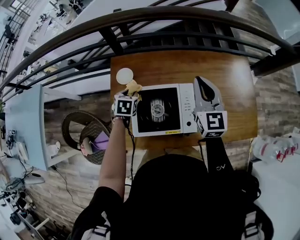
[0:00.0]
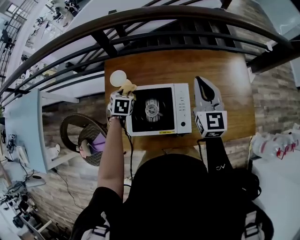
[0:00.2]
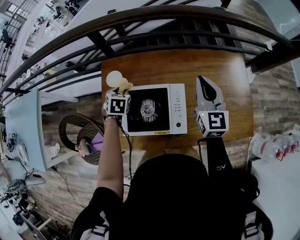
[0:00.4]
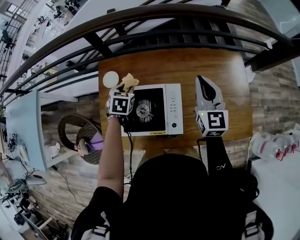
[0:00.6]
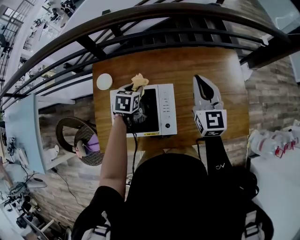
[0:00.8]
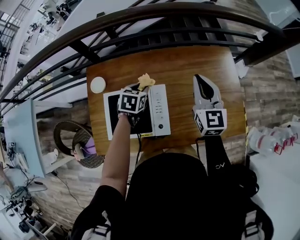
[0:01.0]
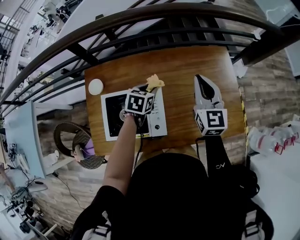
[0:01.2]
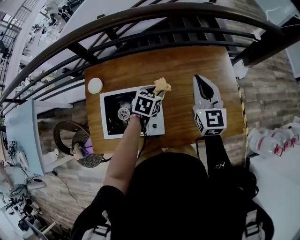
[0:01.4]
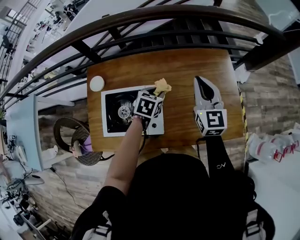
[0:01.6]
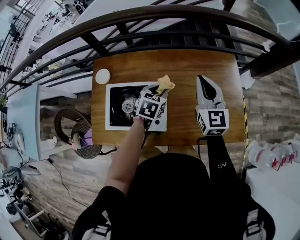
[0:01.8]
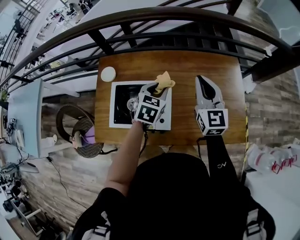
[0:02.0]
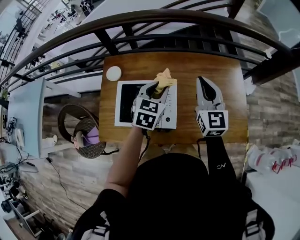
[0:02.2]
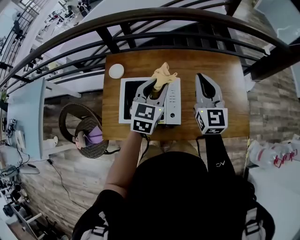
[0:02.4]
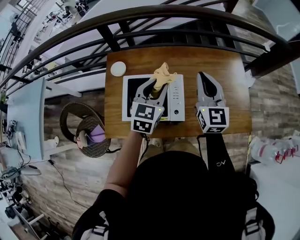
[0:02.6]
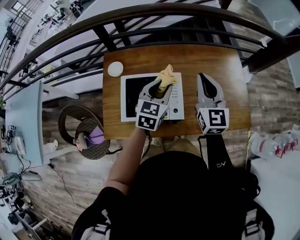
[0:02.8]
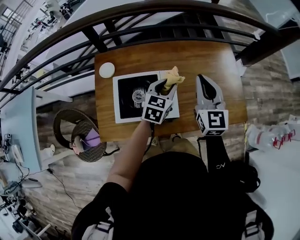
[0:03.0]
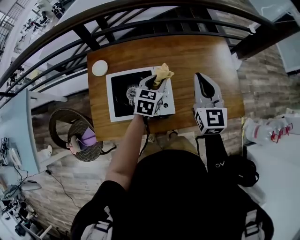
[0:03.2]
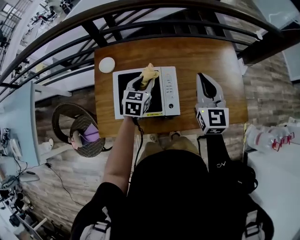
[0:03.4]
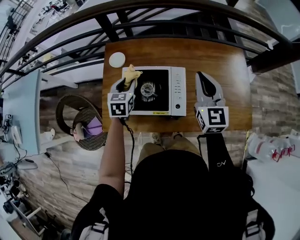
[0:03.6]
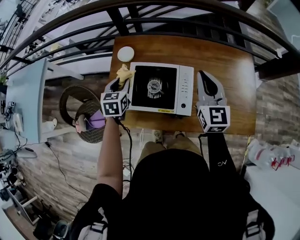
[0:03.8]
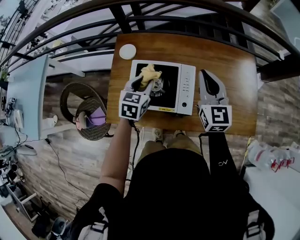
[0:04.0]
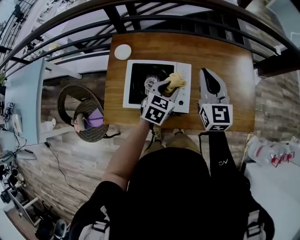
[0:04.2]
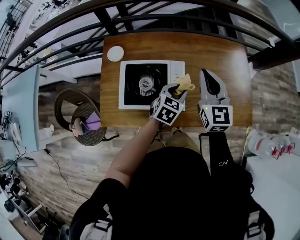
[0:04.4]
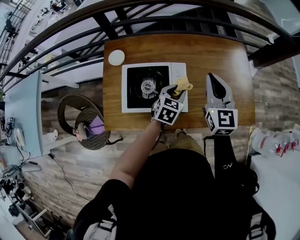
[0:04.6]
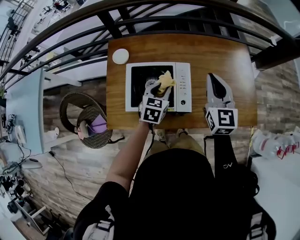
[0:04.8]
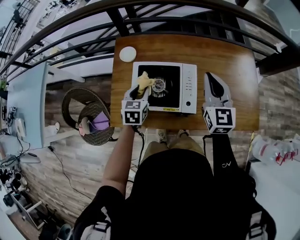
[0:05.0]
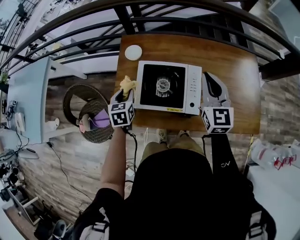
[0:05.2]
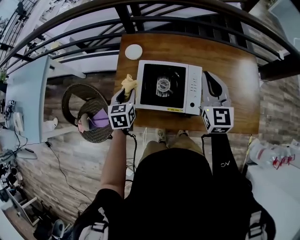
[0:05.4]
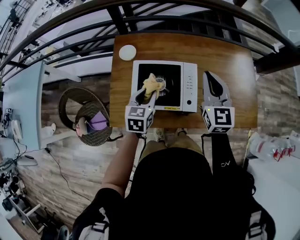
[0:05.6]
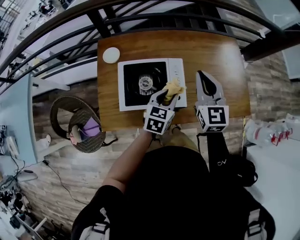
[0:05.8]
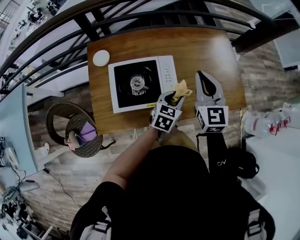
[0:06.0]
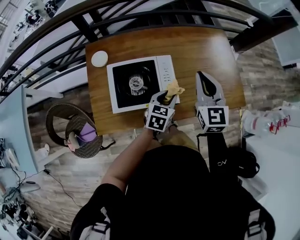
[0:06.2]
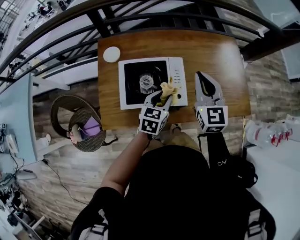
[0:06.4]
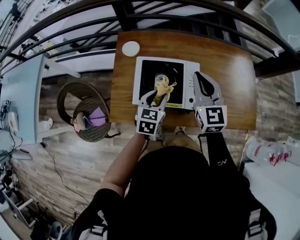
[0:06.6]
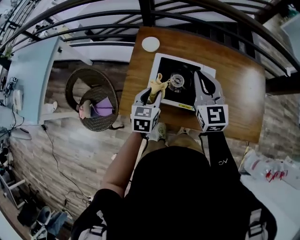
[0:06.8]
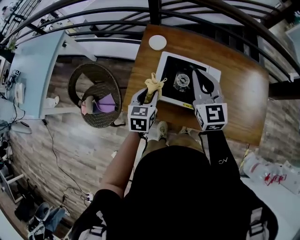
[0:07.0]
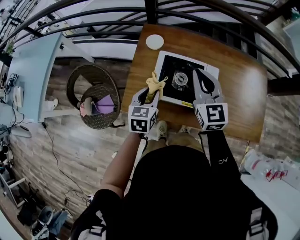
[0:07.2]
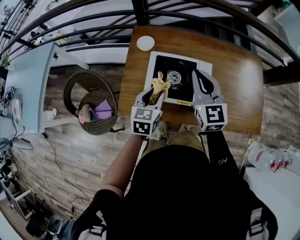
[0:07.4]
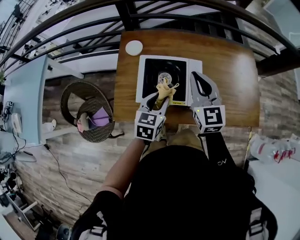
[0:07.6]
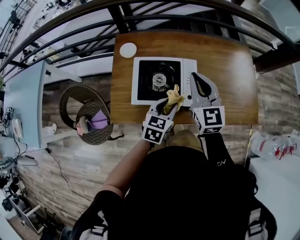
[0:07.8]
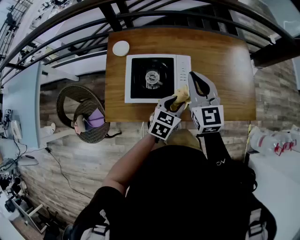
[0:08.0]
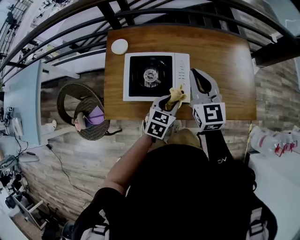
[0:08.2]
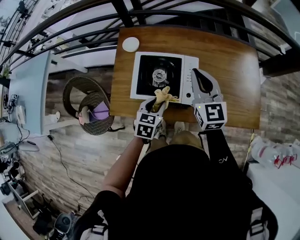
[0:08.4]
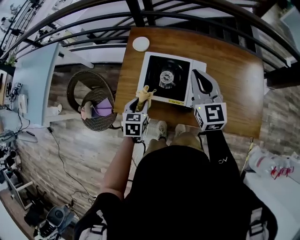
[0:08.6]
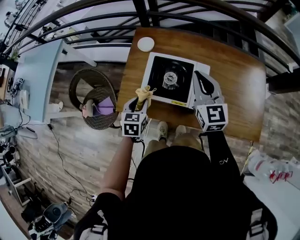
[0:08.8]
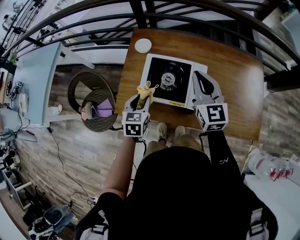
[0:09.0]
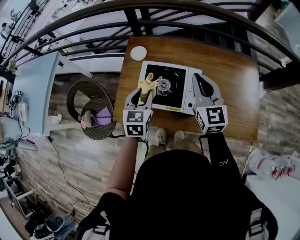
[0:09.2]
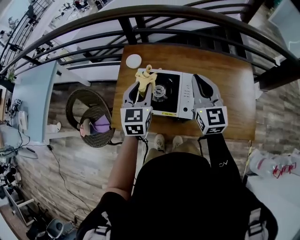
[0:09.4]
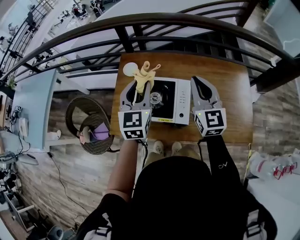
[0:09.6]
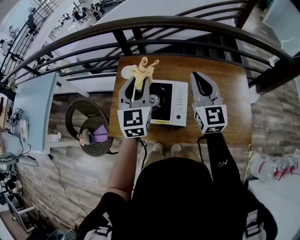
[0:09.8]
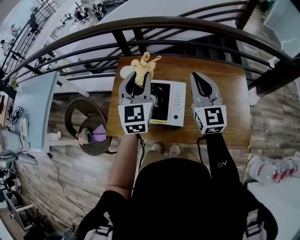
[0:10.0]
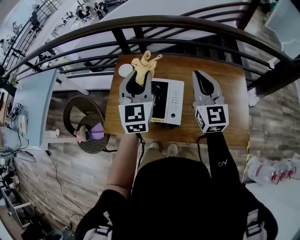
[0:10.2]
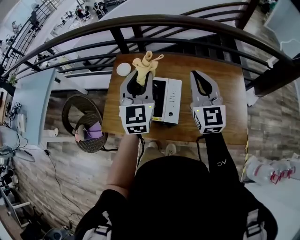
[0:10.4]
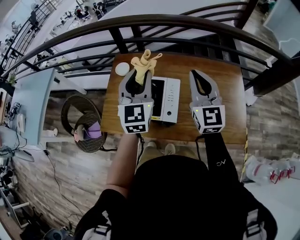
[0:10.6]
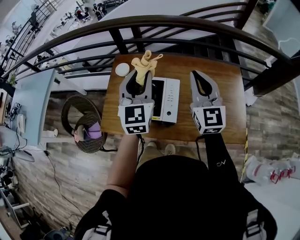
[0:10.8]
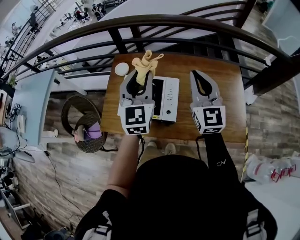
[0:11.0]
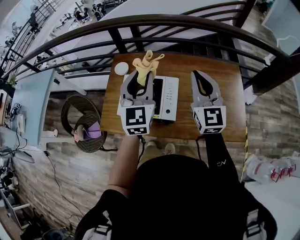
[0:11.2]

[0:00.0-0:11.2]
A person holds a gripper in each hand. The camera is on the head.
0:00.0 to 0:01.6: The left gripper travels to the right by some 35 cm, while the right gripper travels to the right by approximately 20 cm.
0:01.6 to 0:03.2: The left gripper reaches approximately 15 cm upward, then returns. The right gripper goes about 10 cm backward and to the left.
0:03.2 to 0:04.8: The left gripper goes left and right, about 30 cm each way, reversing 2 times.
0:08.0 to 0:09.6: The right gripper travels upward by approximately 5 cm. Meanwhile the left gripper moves upward, some 20 cm, and changes its angle by about 40 degrees.
0:09.6 to 0:11.2: The left gripper is displaced to the right and upward by about 10 cm; the right gripper goes approximately 5 cm to the right.

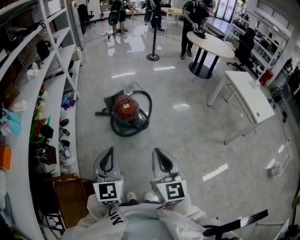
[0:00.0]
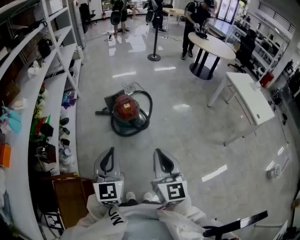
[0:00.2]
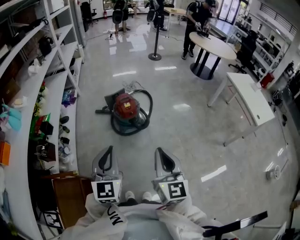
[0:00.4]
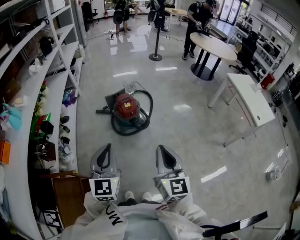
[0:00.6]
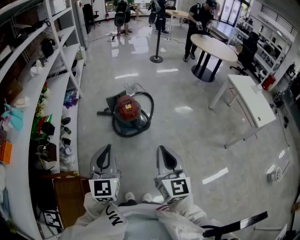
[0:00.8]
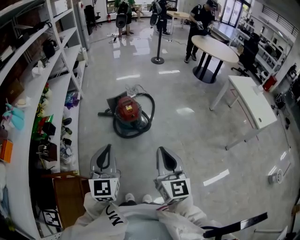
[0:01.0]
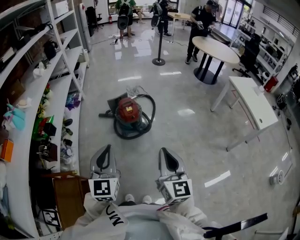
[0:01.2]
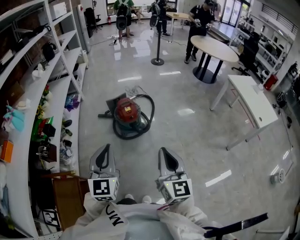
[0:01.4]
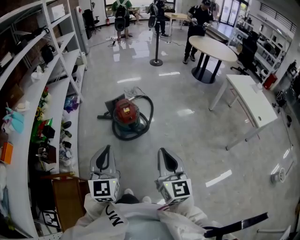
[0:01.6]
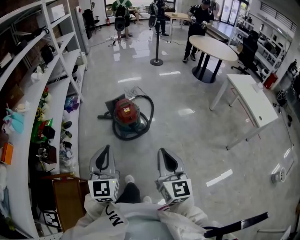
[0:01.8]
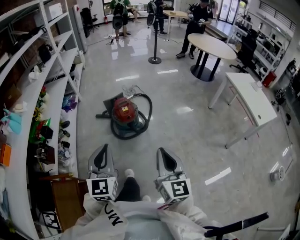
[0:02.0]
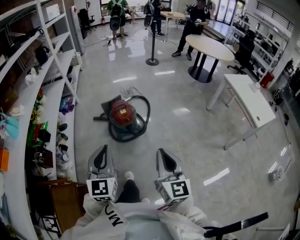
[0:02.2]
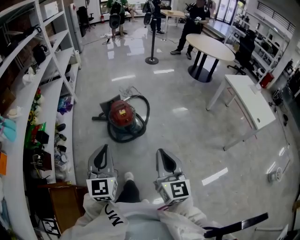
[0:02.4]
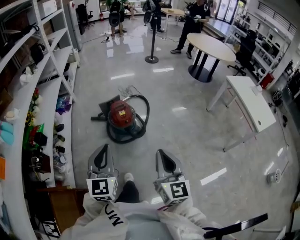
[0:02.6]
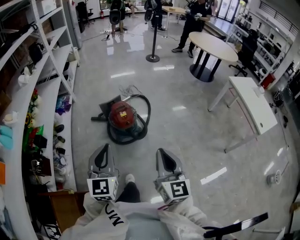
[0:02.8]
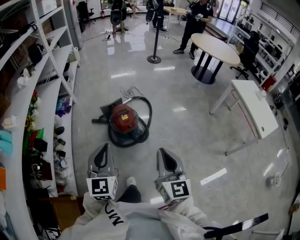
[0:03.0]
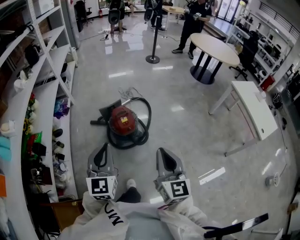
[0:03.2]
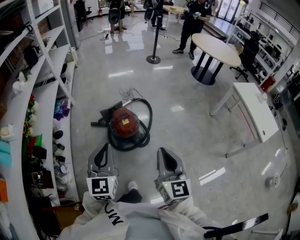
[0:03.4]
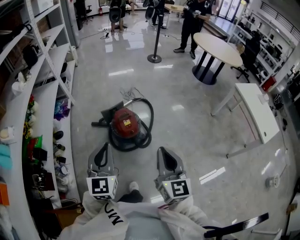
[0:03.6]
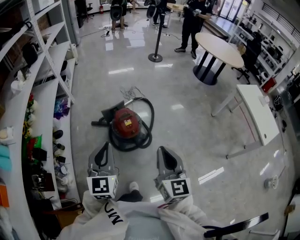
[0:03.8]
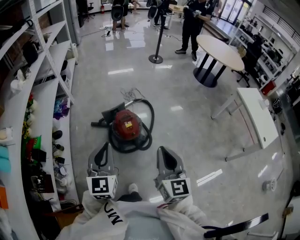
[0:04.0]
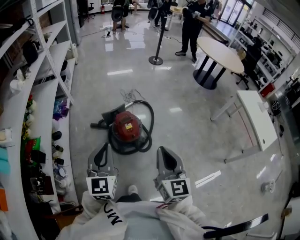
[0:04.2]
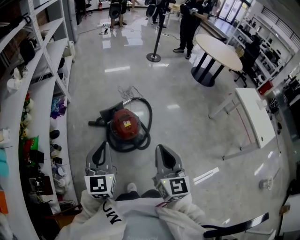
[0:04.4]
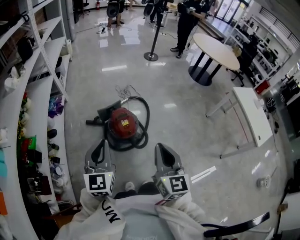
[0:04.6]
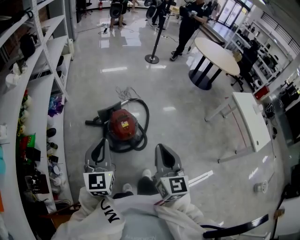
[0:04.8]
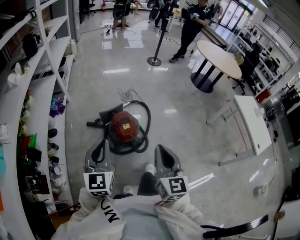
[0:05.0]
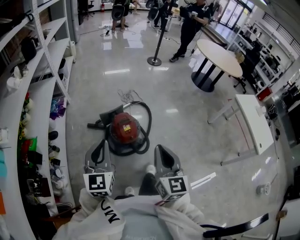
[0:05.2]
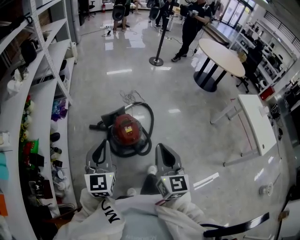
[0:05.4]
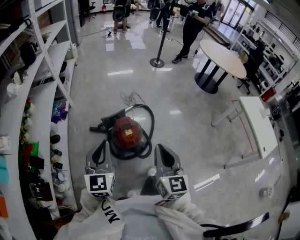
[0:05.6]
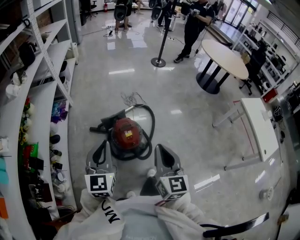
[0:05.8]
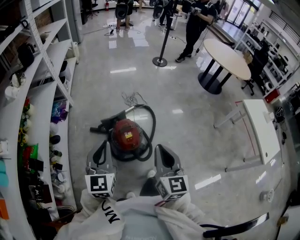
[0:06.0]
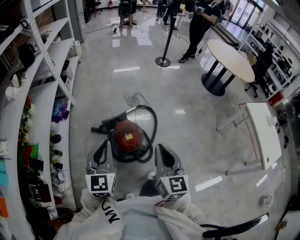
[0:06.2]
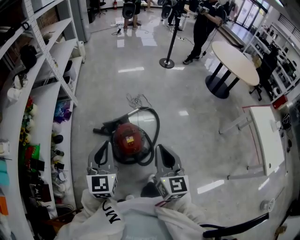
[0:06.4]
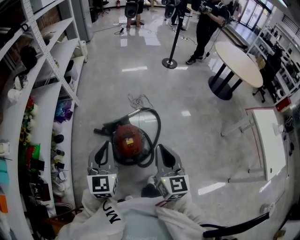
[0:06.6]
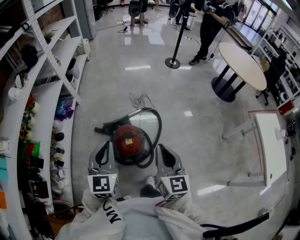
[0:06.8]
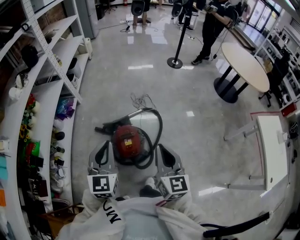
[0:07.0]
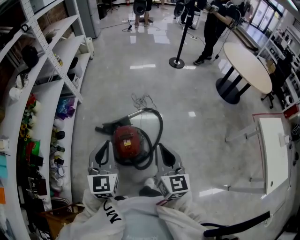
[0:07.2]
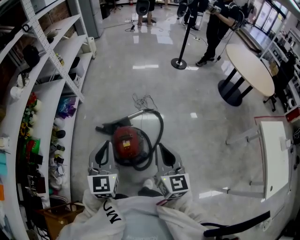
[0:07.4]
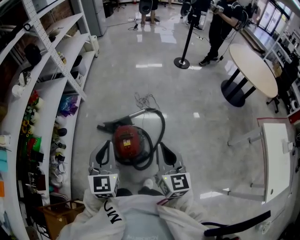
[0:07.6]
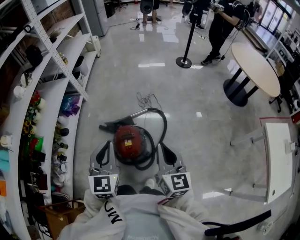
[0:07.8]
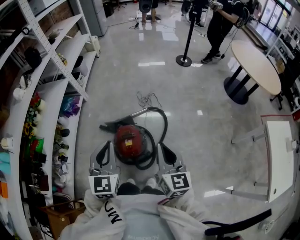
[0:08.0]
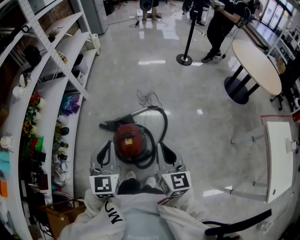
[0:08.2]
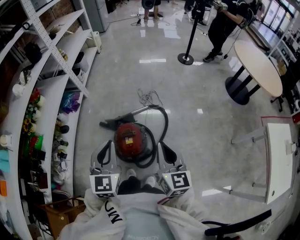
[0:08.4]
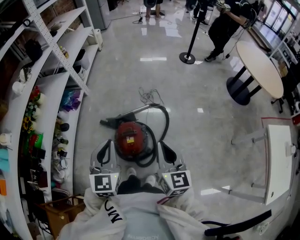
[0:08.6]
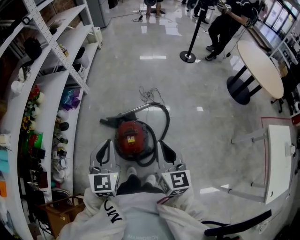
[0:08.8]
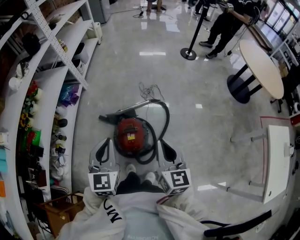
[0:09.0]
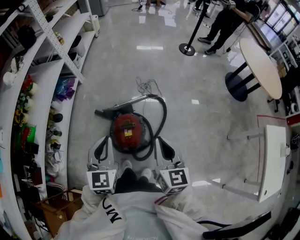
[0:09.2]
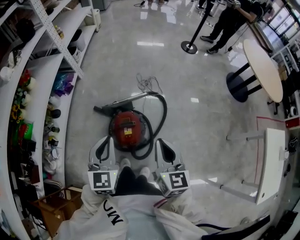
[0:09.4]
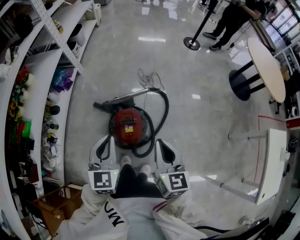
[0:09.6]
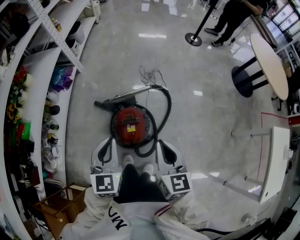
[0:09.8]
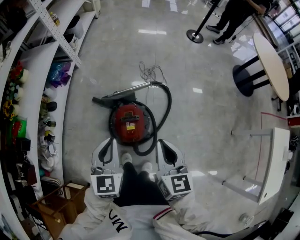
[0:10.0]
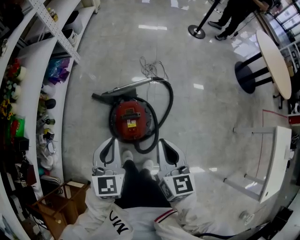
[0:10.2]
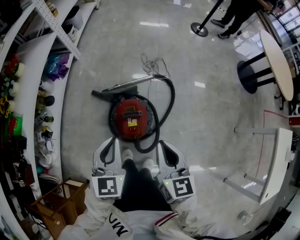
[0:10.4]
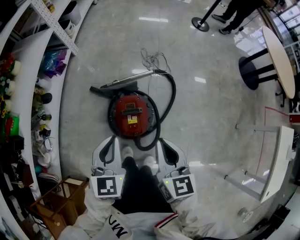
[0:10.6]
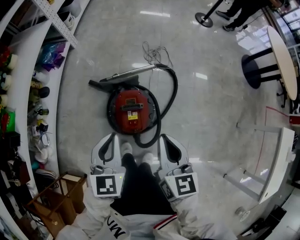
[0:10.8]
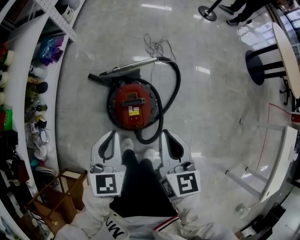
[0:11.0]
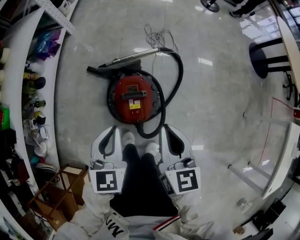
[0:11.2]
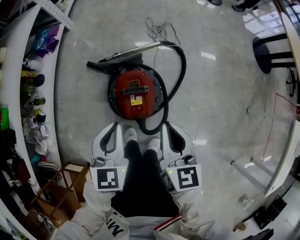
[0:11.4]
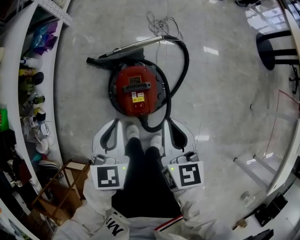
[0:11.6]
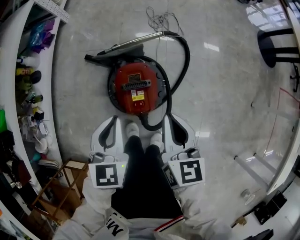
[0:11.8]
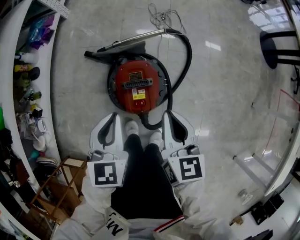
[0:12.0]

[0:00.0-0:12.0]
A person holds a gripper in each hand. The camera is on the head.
0:00.0 to 0:01.6: The right gripper moves to the right, approximately 5 cm.
0:01.6 to 0:03.0: Both grippers travel together forward, about 15 cm.
0:03.0 to 0:04.4: The grippers both shift forward and to the left by approximately 15 cm.
0:04.4 to 0:06.0: The two grippers go roughly 10 cm forward.
0:06.0 to 0:07.6: The right gripper heads forward and to the right, covering roughly 15 cm; the left gripper goes about 15 cm to the right and forward.
0:07.6 to 0:09.0: The right gripper changes place by some 5 cm. Meanwhile the left gripper ends up some 5 cm from where it was.
0:09.0 to 0:10.4: The left gripper shifts some 15 cm downward, while the right gripper moves downward and to the left, about 10 cm.
0:10.4 to 0:12.0: Both grippers travel together downward, some 15 cm.

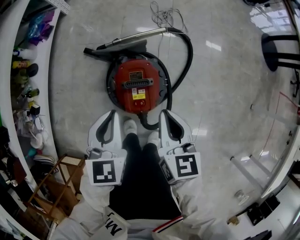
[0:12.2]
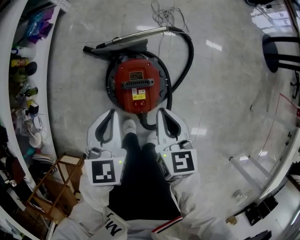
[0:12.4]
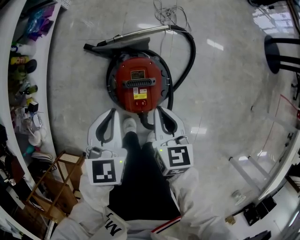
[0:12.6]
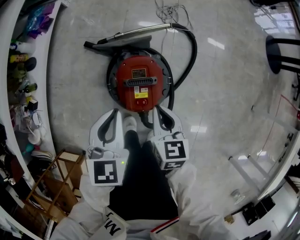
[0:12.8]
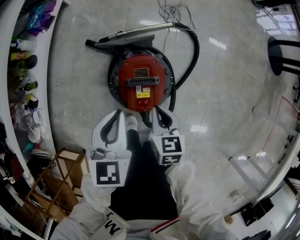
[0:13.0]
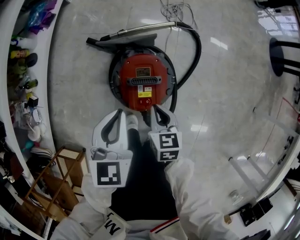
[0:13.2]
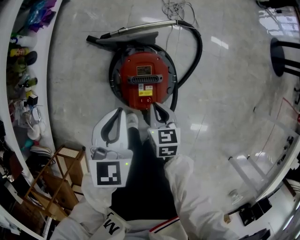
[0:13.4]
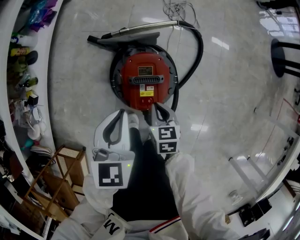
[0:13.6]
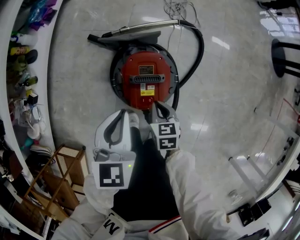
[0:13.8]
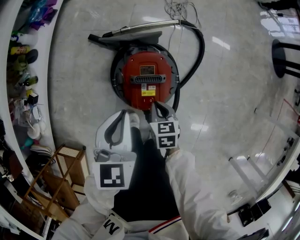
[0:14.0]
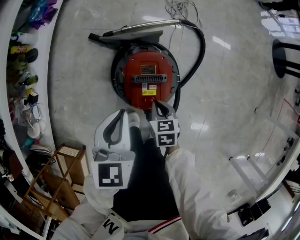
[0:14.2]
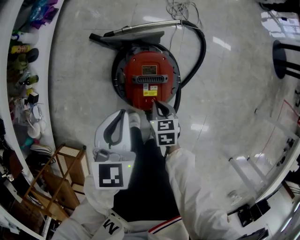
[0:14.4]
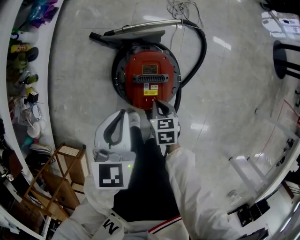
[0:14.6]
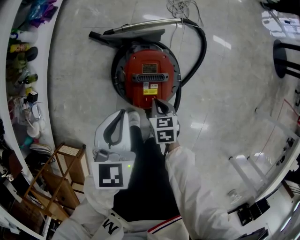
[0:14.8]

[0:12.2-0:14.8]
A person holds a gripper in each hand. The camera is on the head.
0:12.2 to 0:13.4: The right gripper travels downward by roughly 15 cm, and turns by about 20 degrees.
0:13.4 to 0:14.8: The right gripper goes roughly 10 cm downward.
